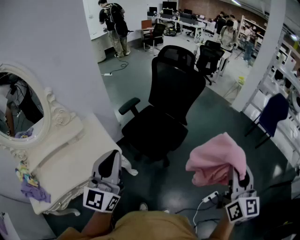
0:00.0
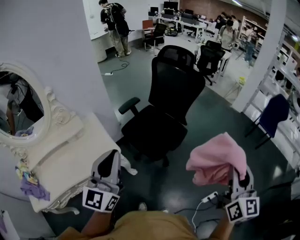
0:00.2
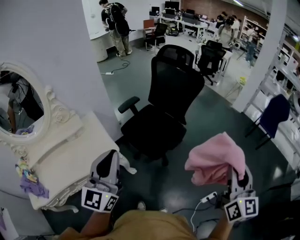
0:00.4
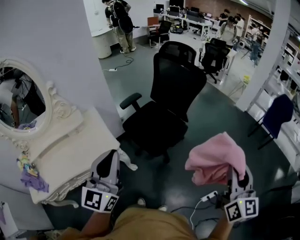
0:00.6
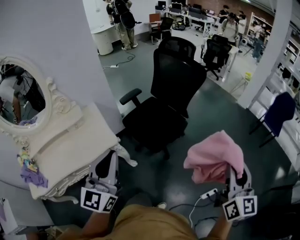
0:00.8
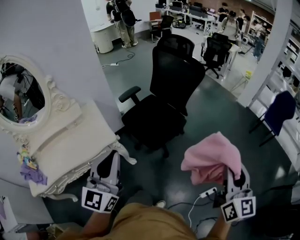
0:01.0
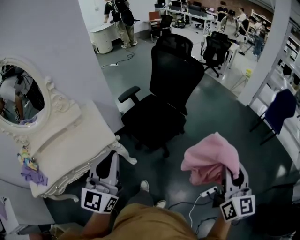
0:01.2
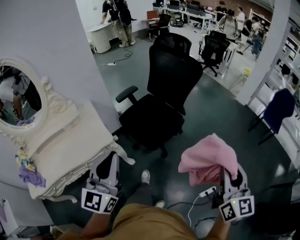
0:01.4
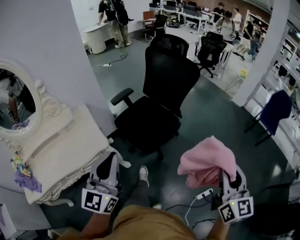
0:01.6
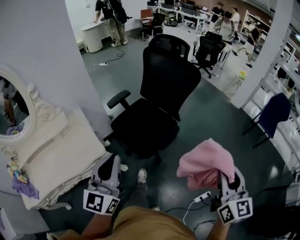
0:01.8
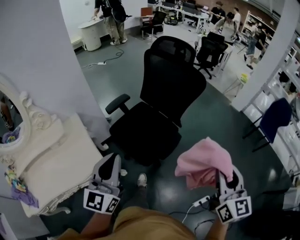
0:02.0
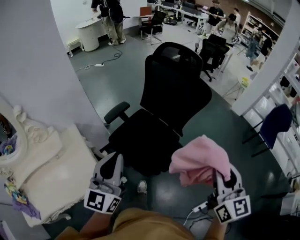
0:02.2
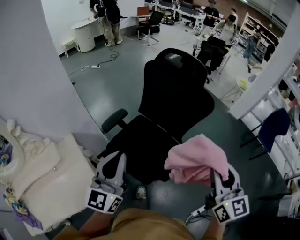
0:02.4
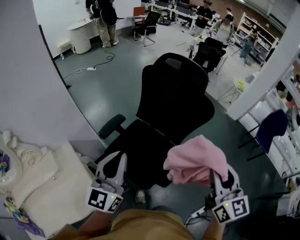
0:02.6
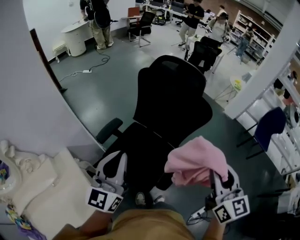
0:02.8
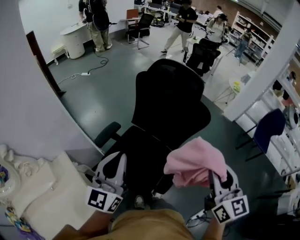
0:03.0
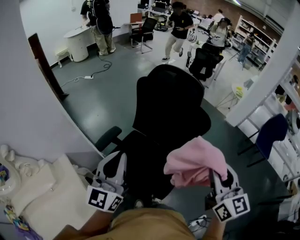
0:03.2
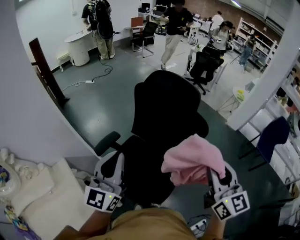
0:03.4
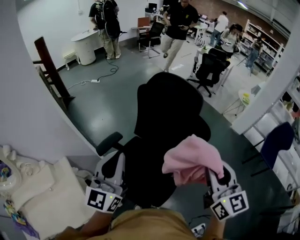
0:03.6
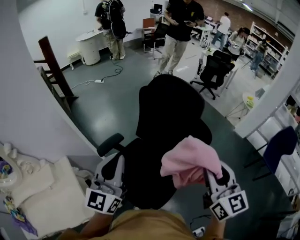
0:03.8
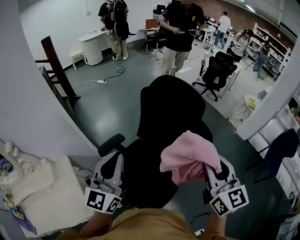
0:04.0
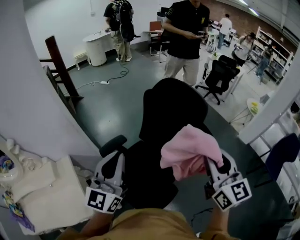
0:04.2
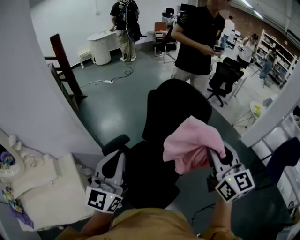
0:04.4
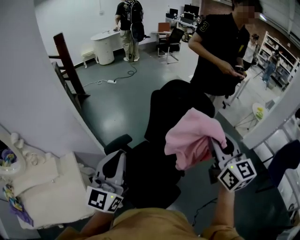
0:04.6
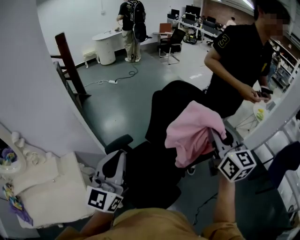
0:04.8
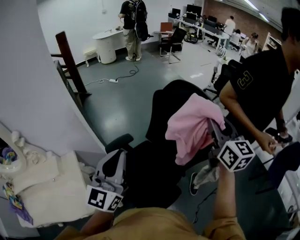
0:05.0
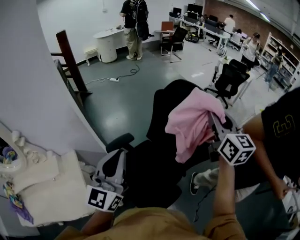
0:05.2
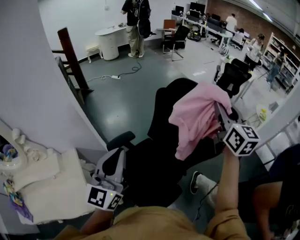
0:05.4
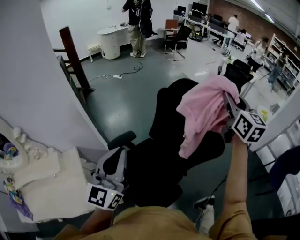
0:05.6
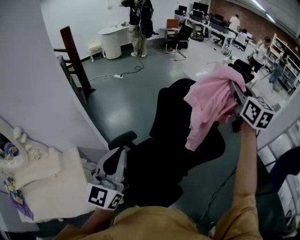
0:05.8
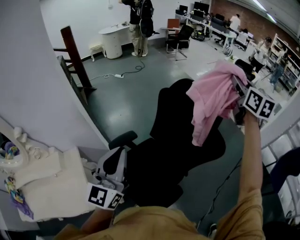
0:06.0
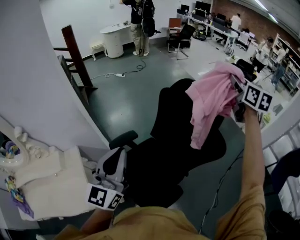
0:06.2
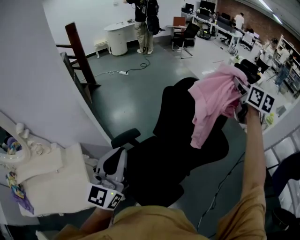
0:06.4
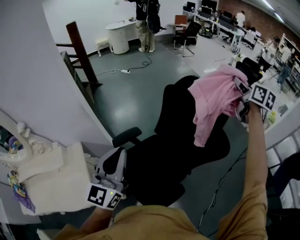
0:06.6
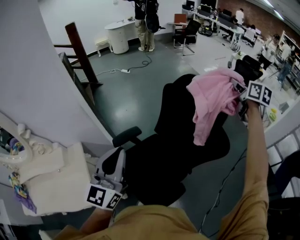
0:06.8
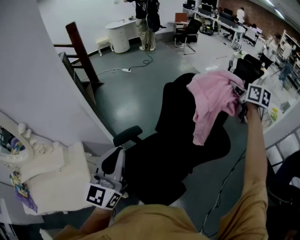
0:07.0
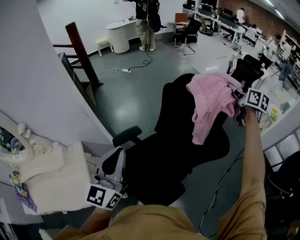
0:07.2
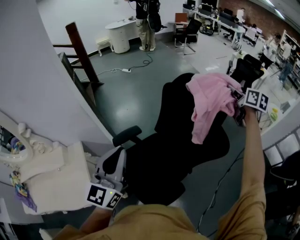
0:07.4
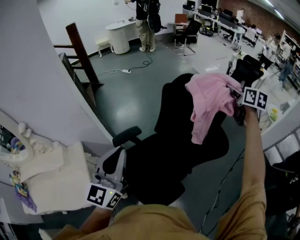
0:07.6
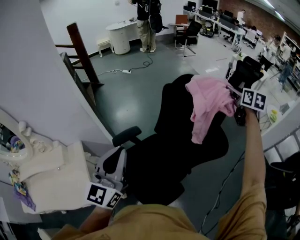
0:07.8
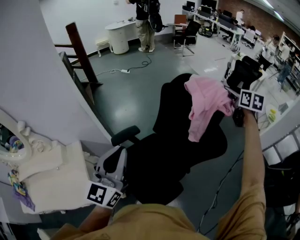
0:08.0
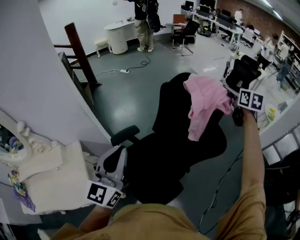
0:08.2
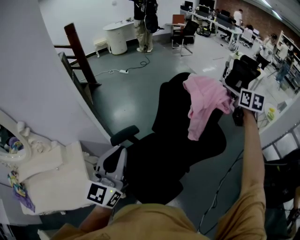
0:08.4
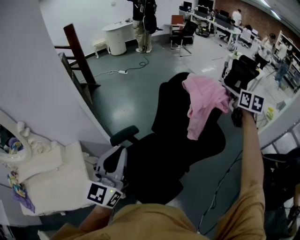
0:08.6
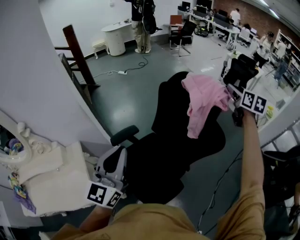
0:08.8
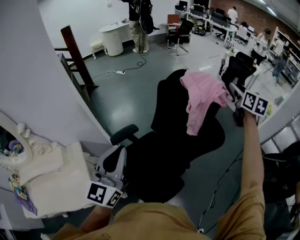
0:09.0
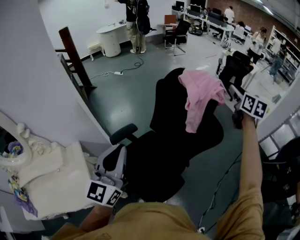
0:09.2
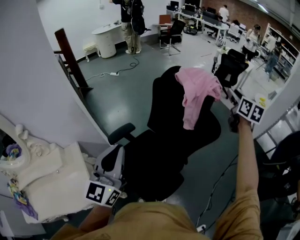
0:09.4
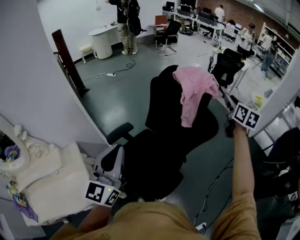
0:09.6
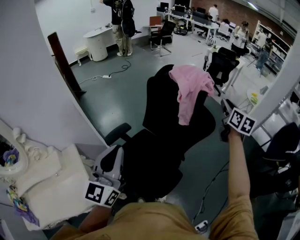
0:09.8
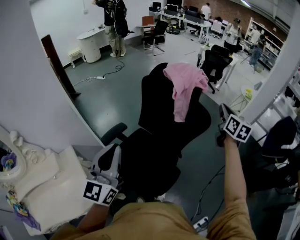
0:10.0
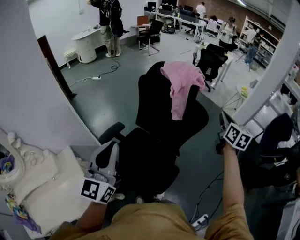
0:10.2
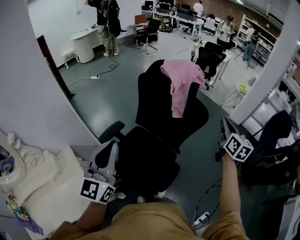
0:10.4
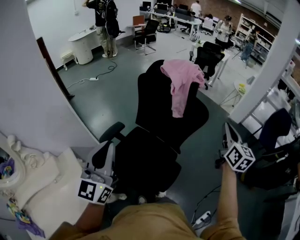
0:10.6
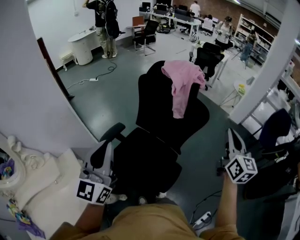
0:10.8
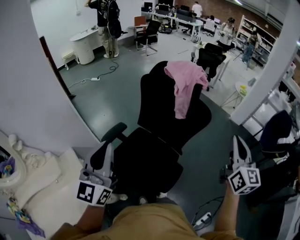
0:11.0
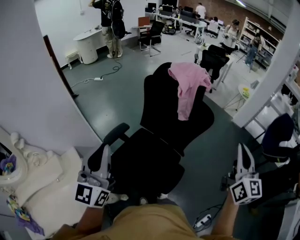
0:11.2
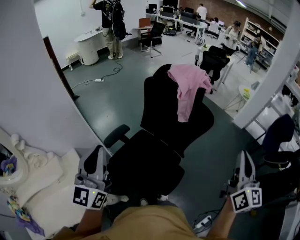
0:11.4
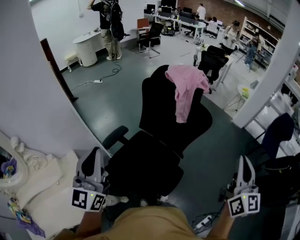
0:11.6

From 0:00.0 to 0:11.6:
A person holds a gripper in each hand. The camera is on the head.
From 0:00.0 to 0:01.4: The left gripper travels to the right by about 10 cm; the right gripper goes roughly 10 cm to the right and downward.
From 0:01.4 to 0:02.8: Both grippers are carried forward, some 50 cm.
From 0:02.8 to 0:04.4: The left gripper heads forward and to the right, covering roughly 10 cm. The right gripper goes approximately 20 cm forward, and changes its angle by approximately 20 degrees.
From 0:04.4 to 0:05.8: The right gripper heads forward and upward, covering approximately 25 cm.
From 0:05.8 to 0:07.2: The right gripper is displaced downward and forward by roughly 15 cm, and rotates about 30 degrees.
From 0:07.2 to 0:08.8: The right gripper shifts by about 5 cm.
From 0:08.8 to 0:10.2: The left gripper heads backward, covering roughly 10 cm; the right gripper heads backward, covering some 25 cm, and closes.
From 0:10.2 to 0:11.6: The right gripper goes some 25 cm backward, and changes its angle by approximately 20 degrees; the left gripper heads to the left, covering about 10 cm.

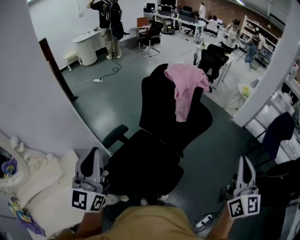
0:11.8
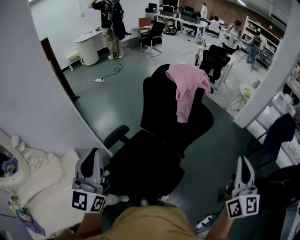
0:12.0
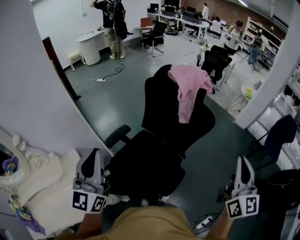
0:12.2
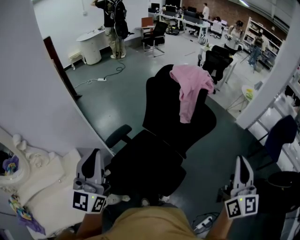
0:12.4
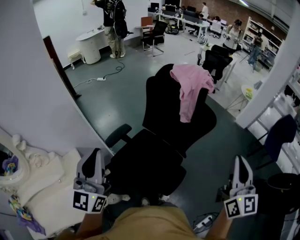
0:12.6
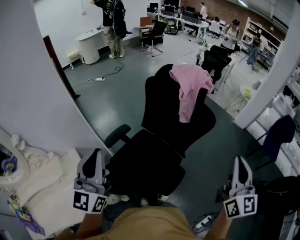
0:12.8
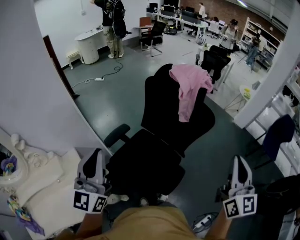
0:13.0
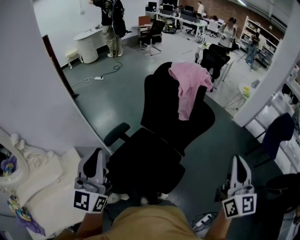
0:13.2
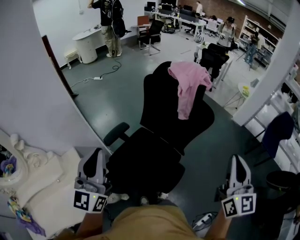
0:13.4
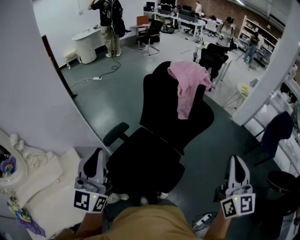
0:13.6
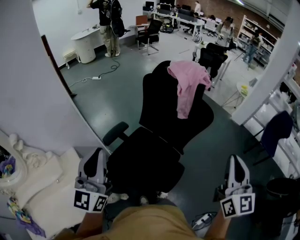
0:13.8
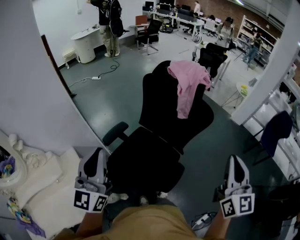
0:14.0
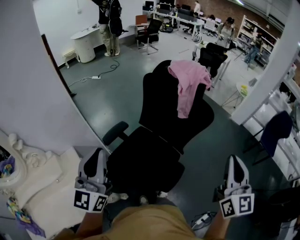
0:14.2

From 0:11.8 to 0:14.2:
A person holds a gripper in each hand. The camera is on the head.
From 0:11.8 to 0:14.2: The grippers stay close to where they were, moving slightly.

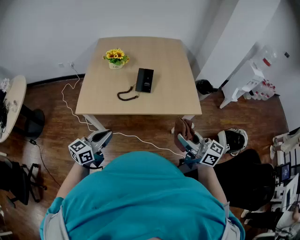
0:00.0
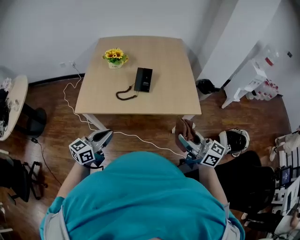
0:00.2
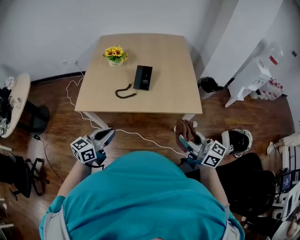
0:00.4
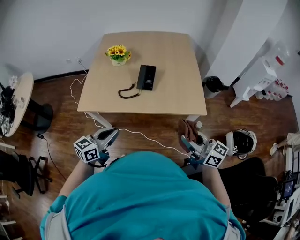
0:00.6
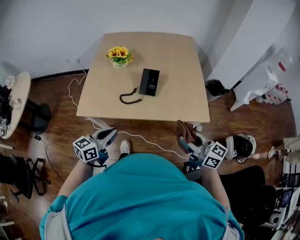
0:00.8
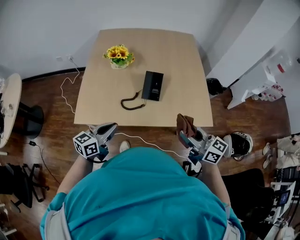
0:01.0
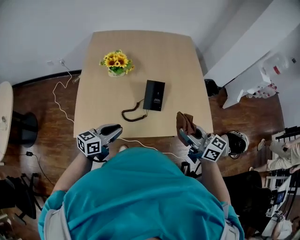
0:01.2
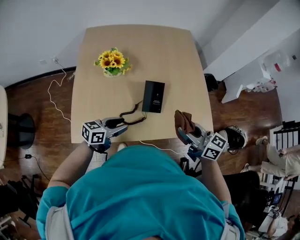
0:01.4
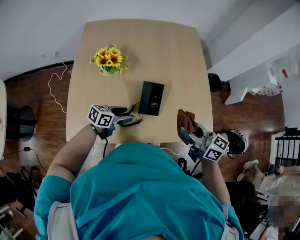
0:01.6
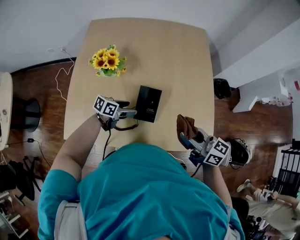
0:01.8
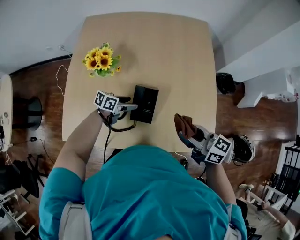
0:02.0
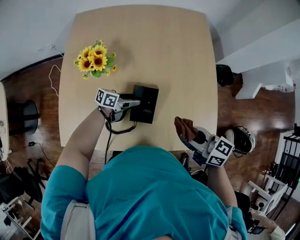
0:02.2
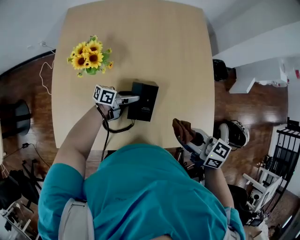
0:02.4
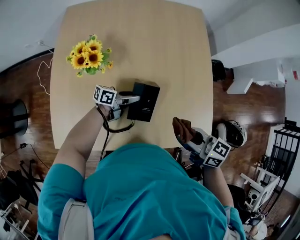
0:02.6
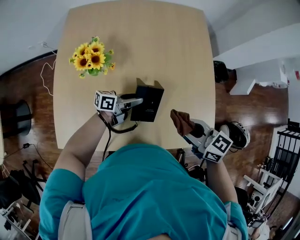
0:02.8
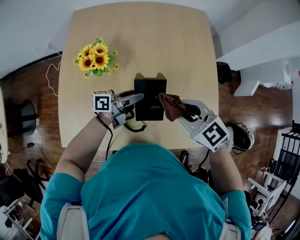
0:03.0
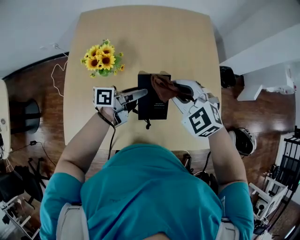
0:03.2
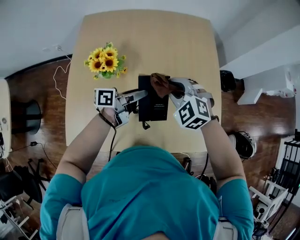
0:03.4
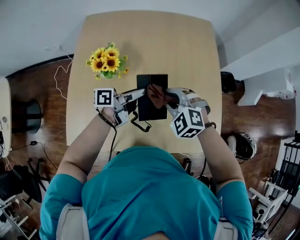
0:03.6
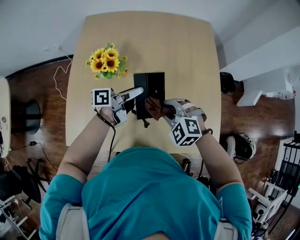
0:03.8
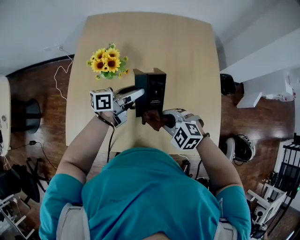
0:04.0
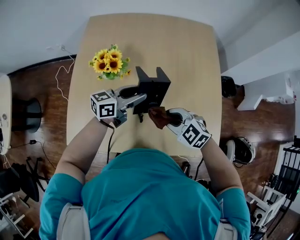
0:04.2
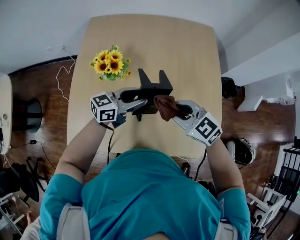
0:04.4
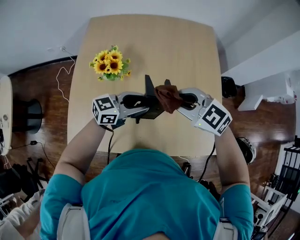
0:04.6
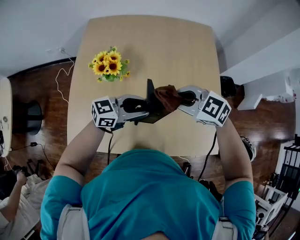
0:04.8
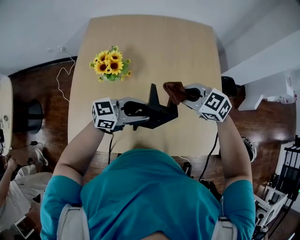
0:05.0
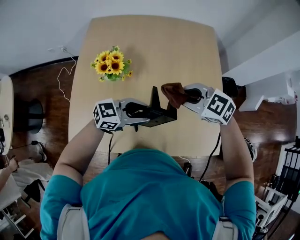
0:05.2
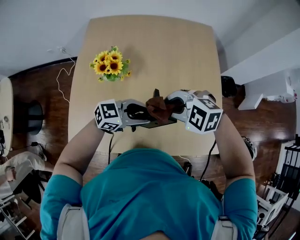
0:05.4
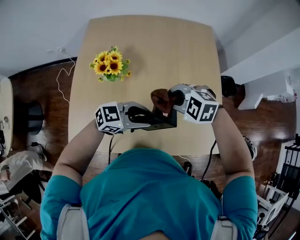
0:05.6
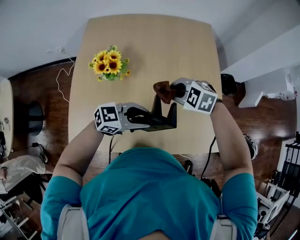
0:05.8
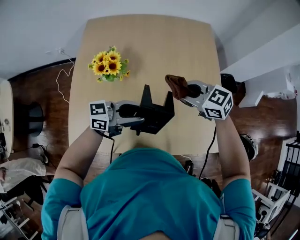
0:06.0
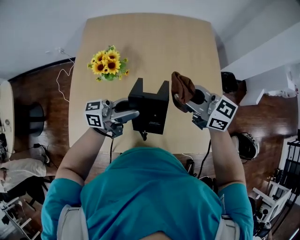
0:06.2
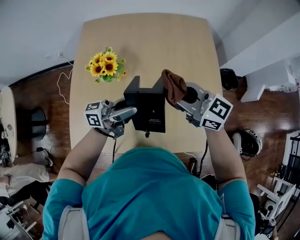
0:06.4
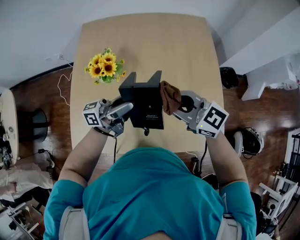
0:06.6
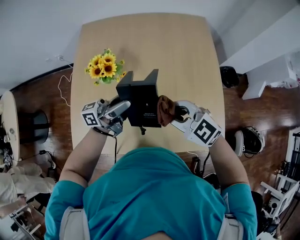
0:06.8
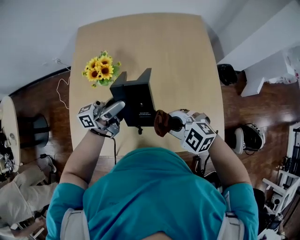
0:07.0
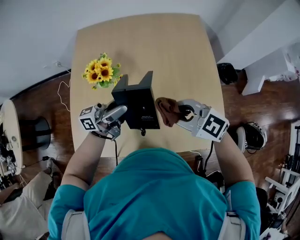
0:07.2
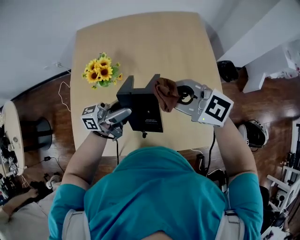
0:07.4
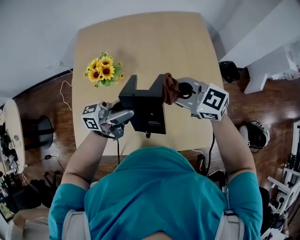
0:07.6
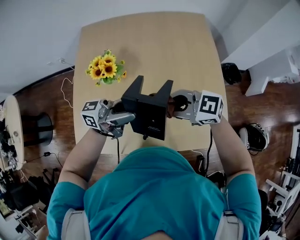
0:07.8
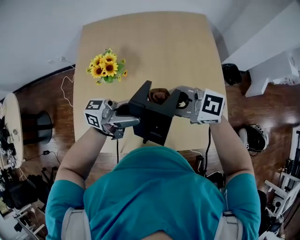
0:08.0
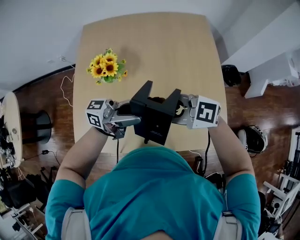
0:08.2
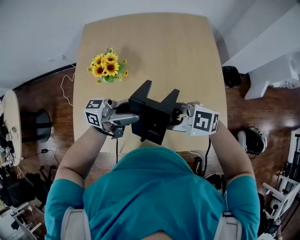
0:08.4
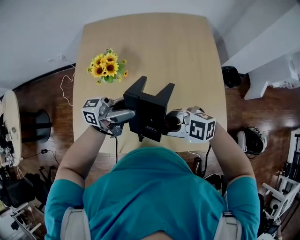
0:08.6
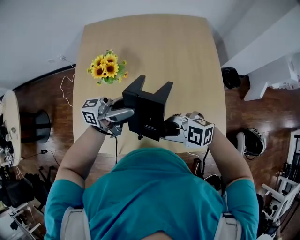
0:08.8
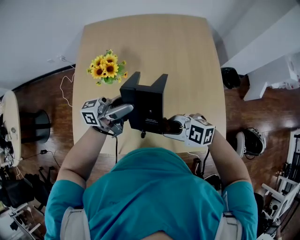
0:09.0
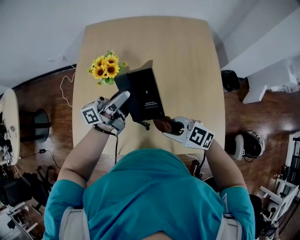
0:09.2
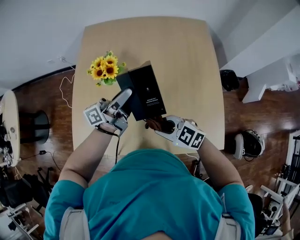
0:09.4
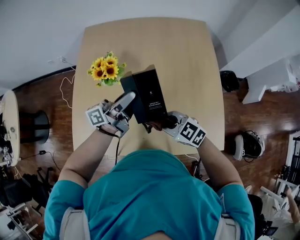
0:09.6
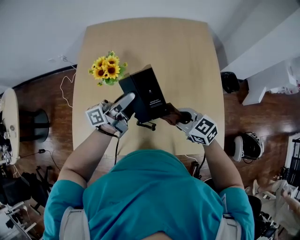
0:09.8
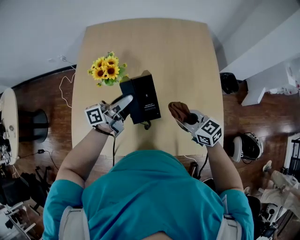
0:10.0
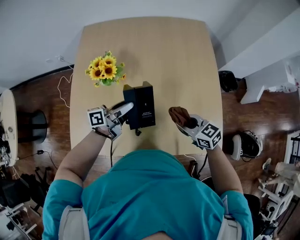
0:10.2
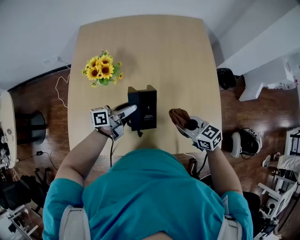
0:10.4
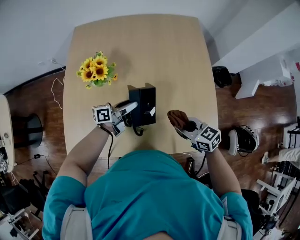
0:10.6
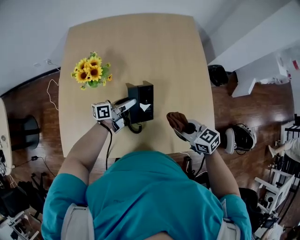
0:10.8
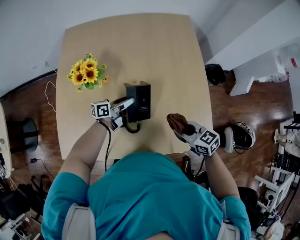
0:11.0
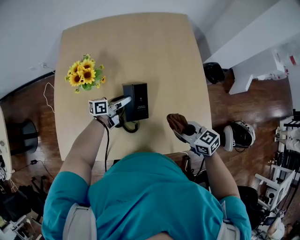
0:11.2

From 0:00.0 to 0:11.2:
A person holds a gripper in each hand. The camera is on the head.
From 0:00.0 to 0:01.6: The right gripper heads forward, covering roughly 30 cm. The left gripper travels forward and downward by approximately 40 cm, swivels roughly 30 degrees, and opens.
From 0:01.6 to 0:03.2: The left gripper shifts by about 20 cm, and changes its angle by approximately 40 degrees; the right gripper changes place by roughly 20 cm, and twists roughly 60 degrees counterclockwise, seen from behind.
From 0:03.2 to 0:04.8: The right gripper moves approximately 10 cm downward and comes back, and swivels about 30 degrees. The left gripper shifts by about 5 cm, and twists approximately 50 degrees clockwise, seen from behind.
From 0:04.8 to 0:06.4: Both grippers move upward, about 5 cm. The right gripper tilts its fingers about 30 degrees upward. Meanwhile the left gripper swivels about 40 degrees.
From 0:06.4 to 0:08.0: The left gripper shifts by approximately 5 cm; the right gripper goes up and down, roughly 15 cm each way, reversing 2 times, and rotates some 20 degrees.
From 0:08.0 to 0:09.6: The right gripper goes about 15 cm downward, and rotates roughly 20 degrees. The left gripper changes place by roughly 10 cm, and changes its angle by about 40 degrees.
From 0:09.6 to 0:11.2: The right gripper goes some 15 cm to the right, and changes its angle by approximately 30 degrees; the left gripper shifts roughly 25 cm downward, and angles its fingers downward, by some 30 degrees.
